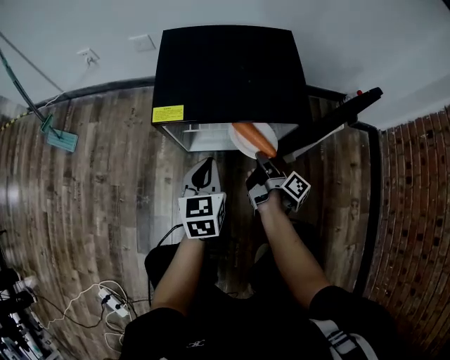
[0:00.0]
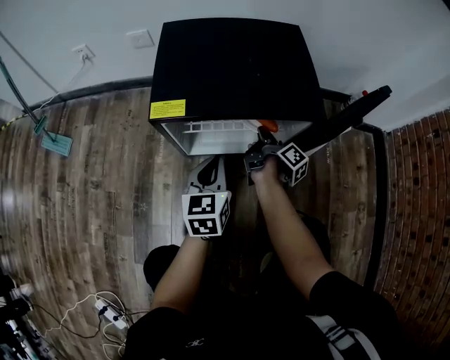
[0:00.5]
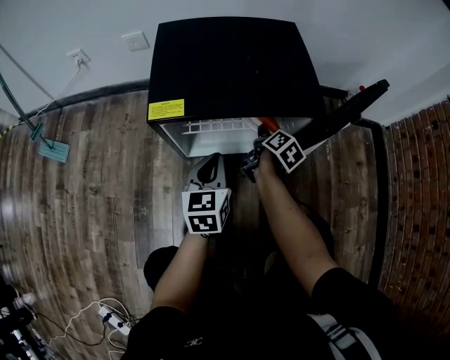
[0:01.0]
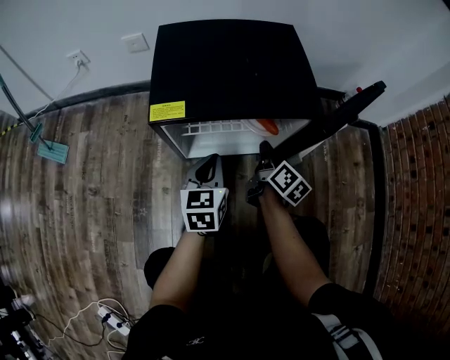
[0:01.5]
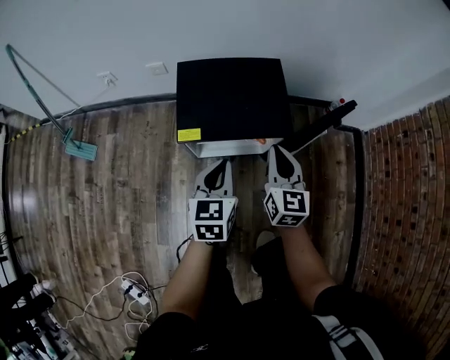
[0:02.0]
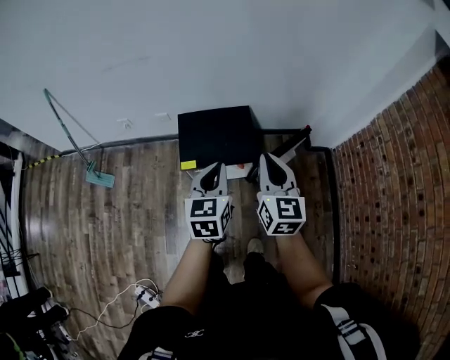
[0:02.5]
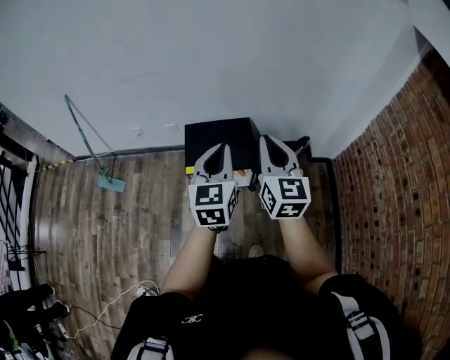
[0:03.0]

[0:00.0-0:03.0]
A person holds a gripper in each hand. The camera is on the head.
0:00.0 to 0:01.5: The left gripper heads downward, covering some 5 cm.
0:01.5 to 0:03.0: The left gripper heads upward, covering roughly 70 cm.

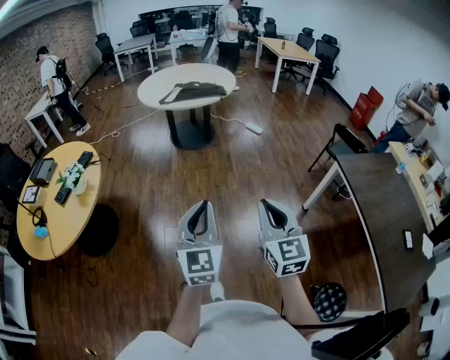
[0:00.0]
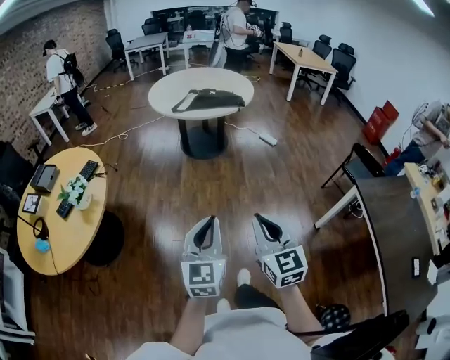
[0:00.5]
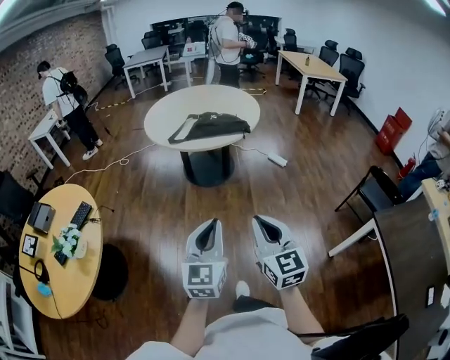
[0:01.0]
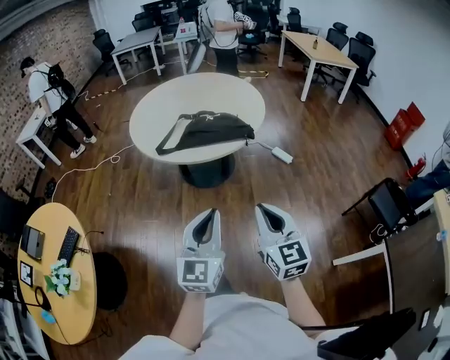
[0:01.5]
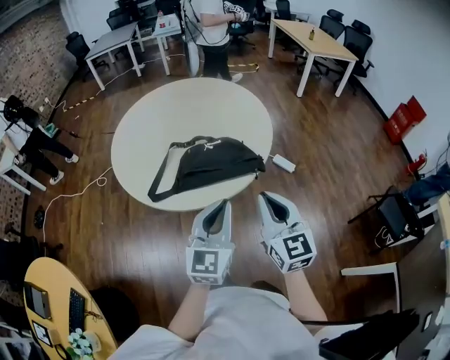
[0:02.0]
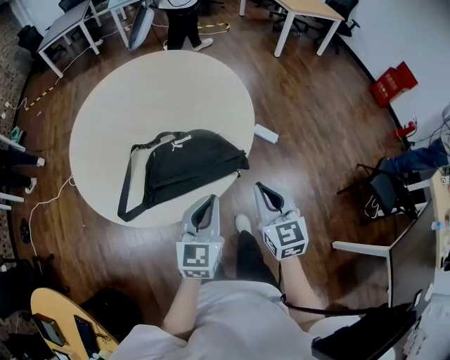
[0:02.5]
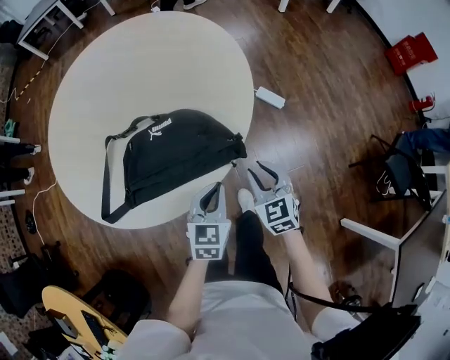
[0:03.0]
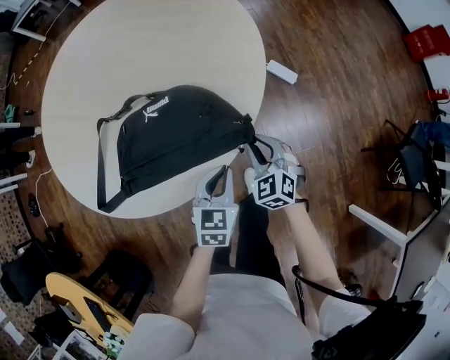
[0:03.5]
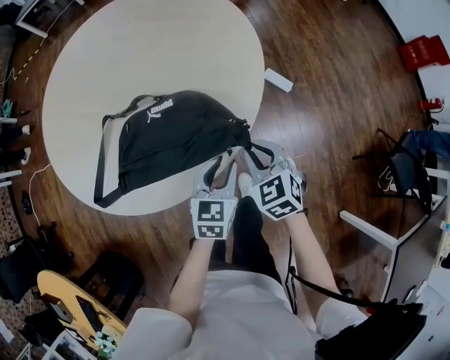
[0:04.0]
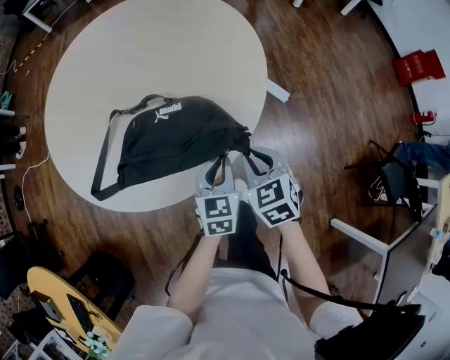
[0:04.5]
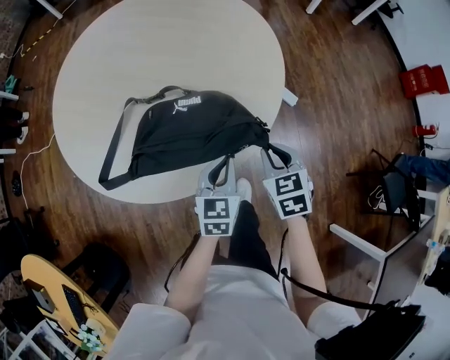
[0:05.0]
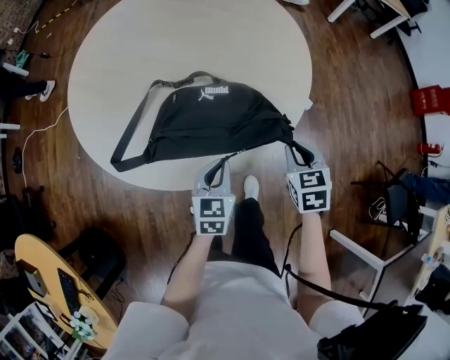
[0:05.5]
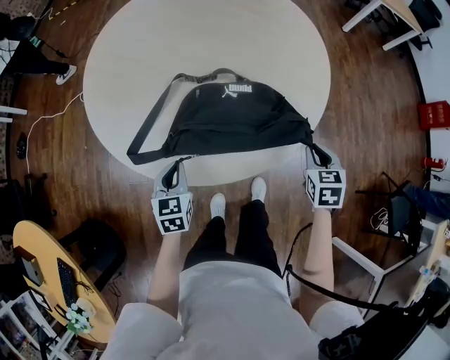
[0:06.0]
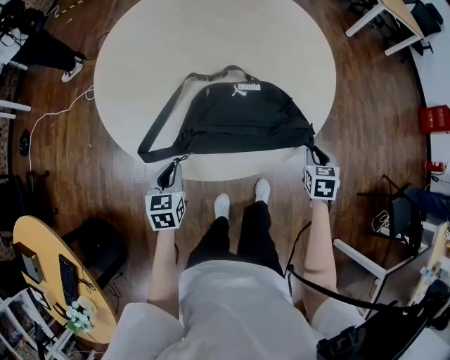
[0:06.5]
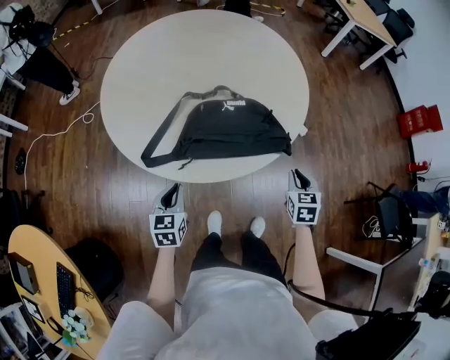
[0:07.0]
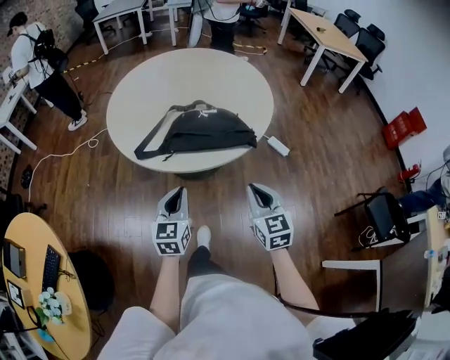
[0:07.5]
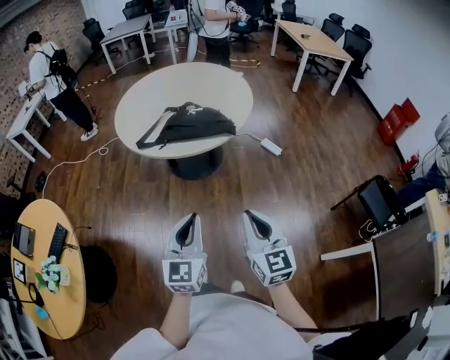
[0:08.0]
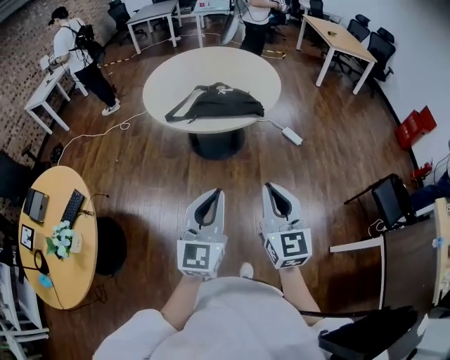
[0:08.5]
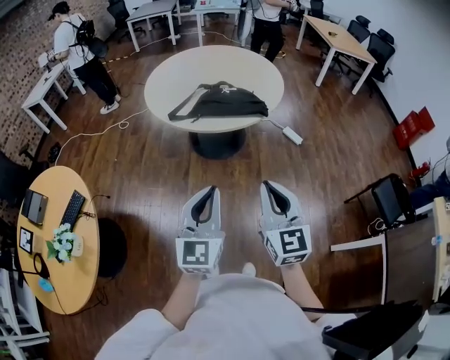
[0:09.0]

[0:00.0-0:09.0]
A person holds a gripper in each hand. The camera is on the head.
0:00.0 to 0:02.0: Both grippers are carried forward, some 90 cm.
0:02.0 to 0:04.5: The two grippers go some 35 cm downward and forward. The right gripper angles its fingers downward, by about 40 degrees; the left gripper rotates about 30 degrees, and opens, then closes again.
0:04.5 to 0:07.0: The left gripper is displaced to the left and backward by some 35 cm. The right gripper is displaced backward by about 10 cm, and swivels roughly 20 degrees.
0:07.0 to 0:09.0: The two grippers travel together, backward, approximately 50 cm. The grippers both shift upward by about 30 cm. The left gripper tilts its fingers about 30 degrees upward, while the right gripper tilts its fingers approximately 40 degrees upward.

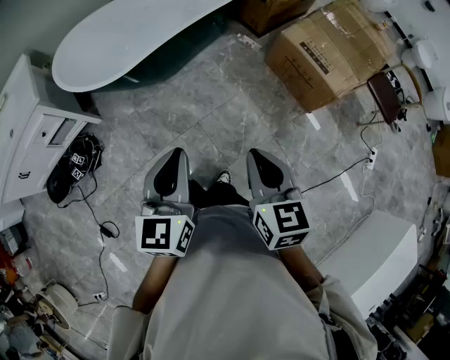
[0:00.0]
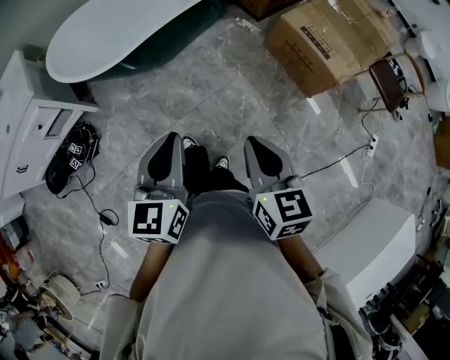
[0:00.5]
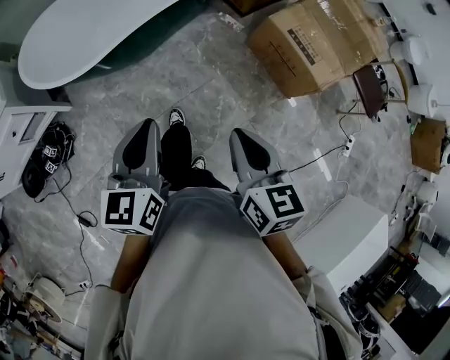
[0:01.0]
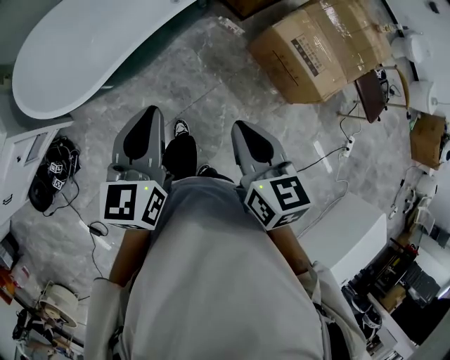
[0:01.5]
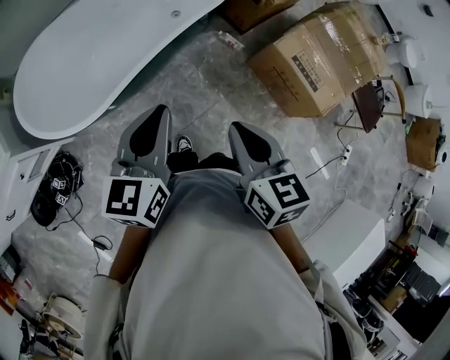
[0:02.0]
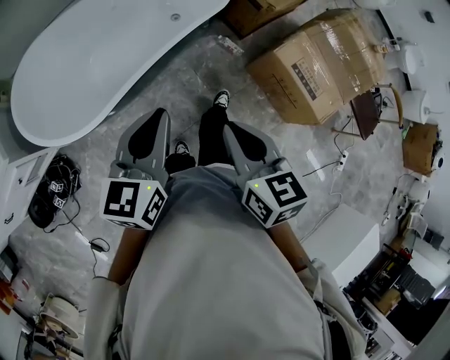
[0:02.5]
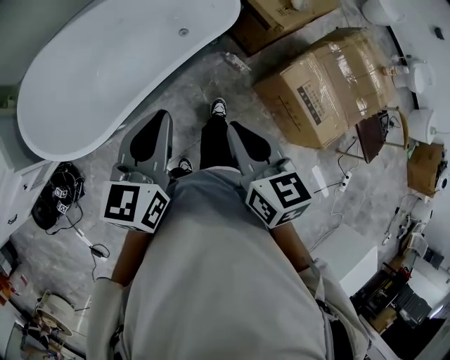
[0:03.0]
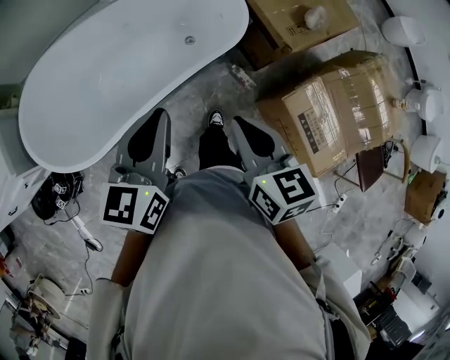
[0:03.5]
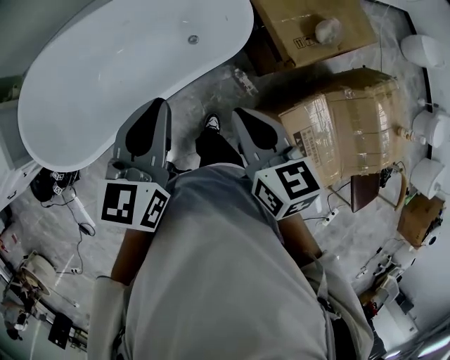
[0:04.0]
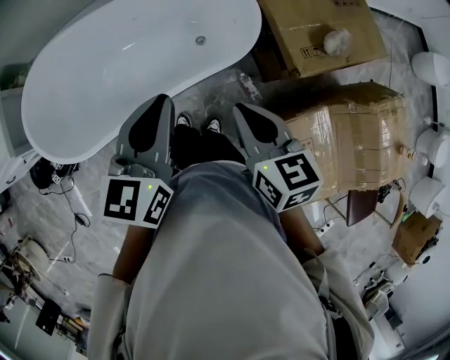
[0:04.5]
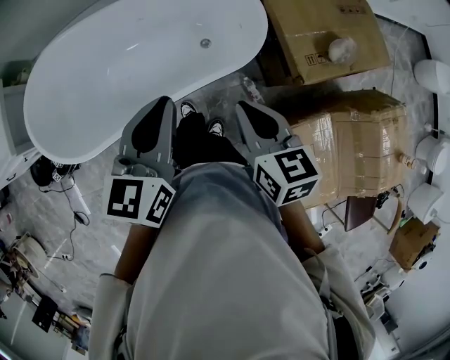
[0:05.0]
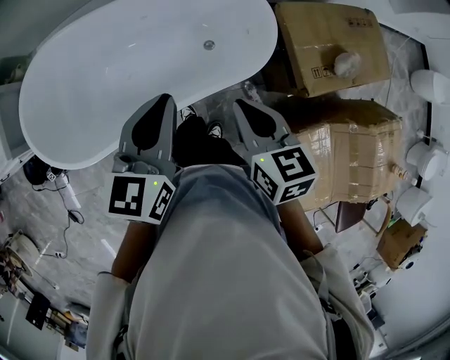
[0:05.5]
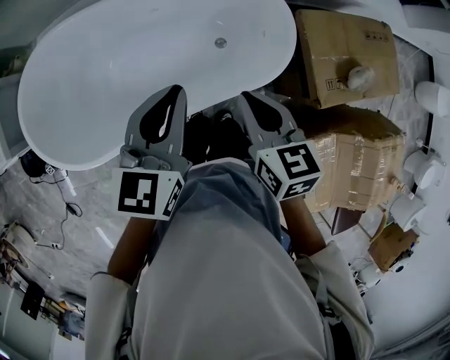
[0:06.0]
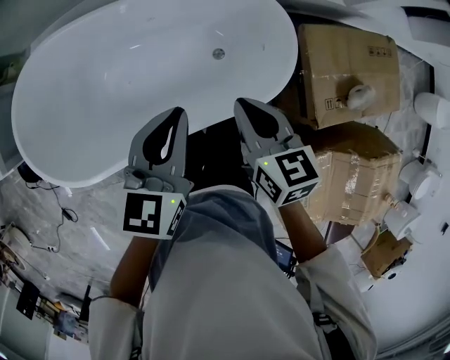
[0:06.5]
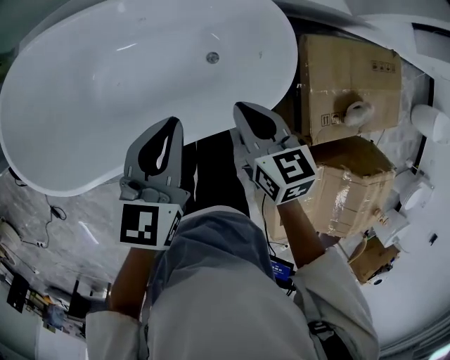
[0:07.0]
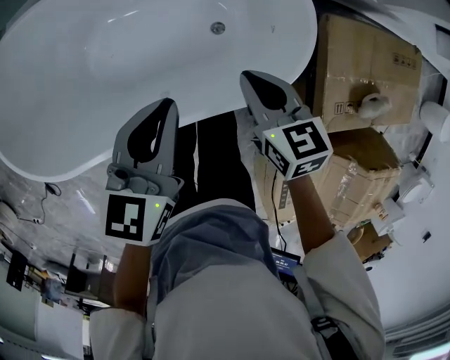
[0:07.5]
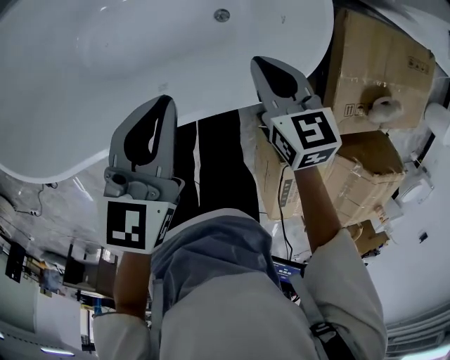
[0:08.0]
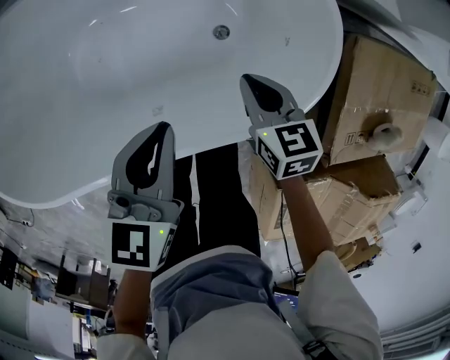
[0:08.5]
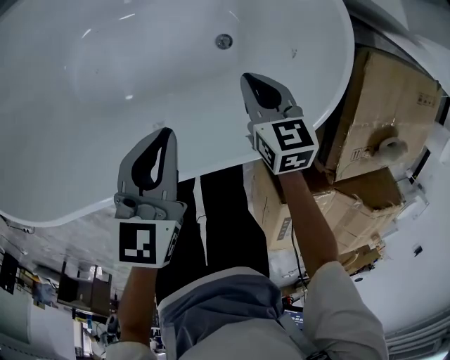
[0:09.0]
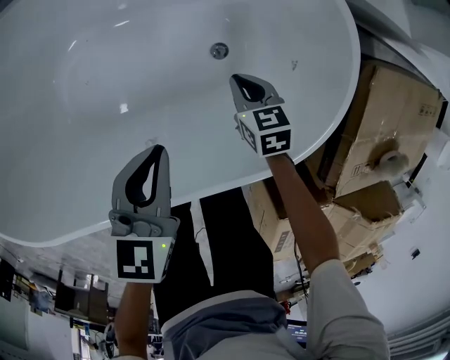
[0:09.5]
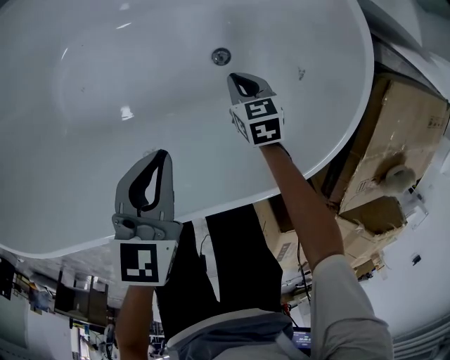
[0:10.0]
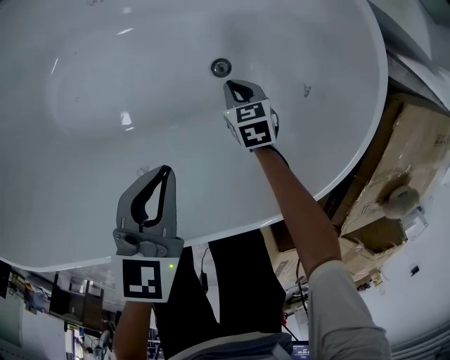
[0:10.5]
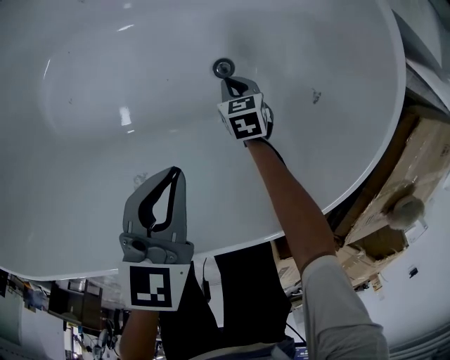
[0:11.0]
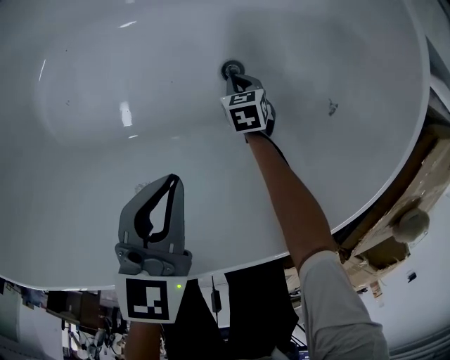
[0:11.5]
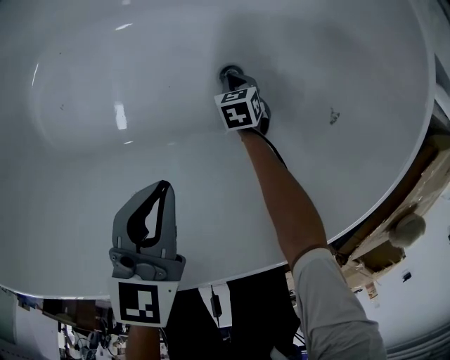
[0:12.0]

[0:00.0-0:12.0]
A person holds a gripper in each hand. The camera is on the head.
0:00.0 to 0:02.0: The grippers both shift forward by about 40 cm.
0:02.0 to 0:04.0: Both grippers are carried forward and to the right, some 50 cm.
0:04.0 to 0:06.0: The two grippers go approximately 20 cm forward and to the left.
0:06.0 to 0:08.0: Both grippers travel together downward and forward, some 30 cm.
0:08.0 to 0:10.0: Both grippers travel together downward, roughly 30 cm.
0:10.0 to 0:12.0: The right gripper shifts some 25 cm downward; the left gripper goes roughly 15 cm downward.

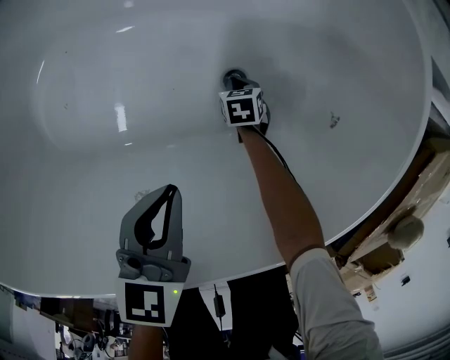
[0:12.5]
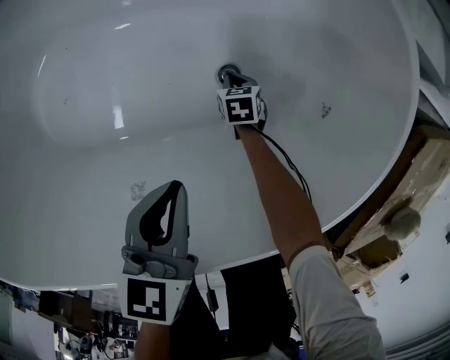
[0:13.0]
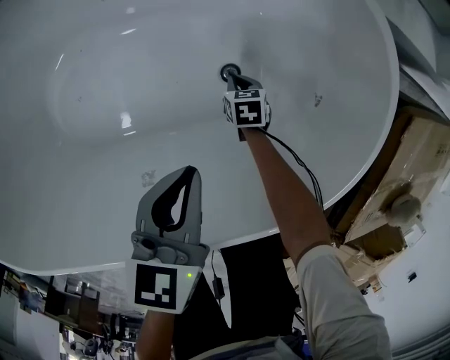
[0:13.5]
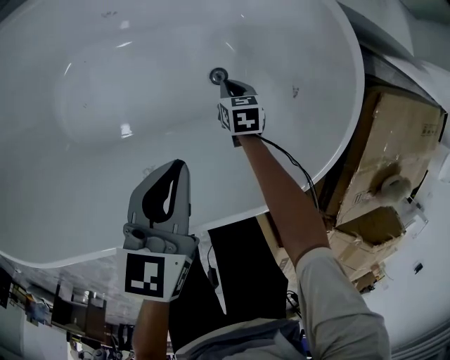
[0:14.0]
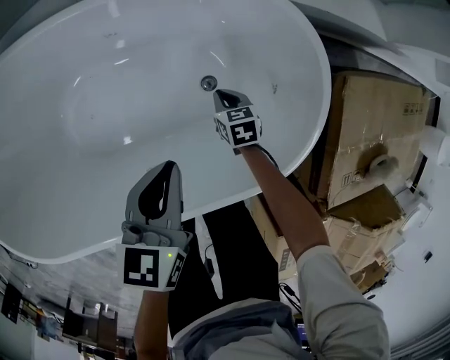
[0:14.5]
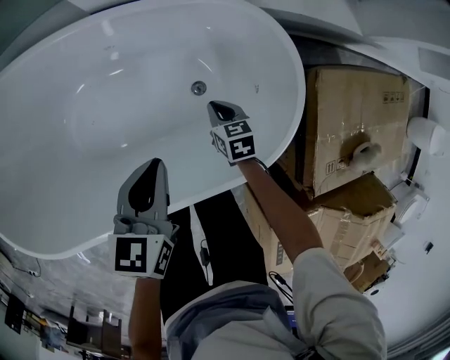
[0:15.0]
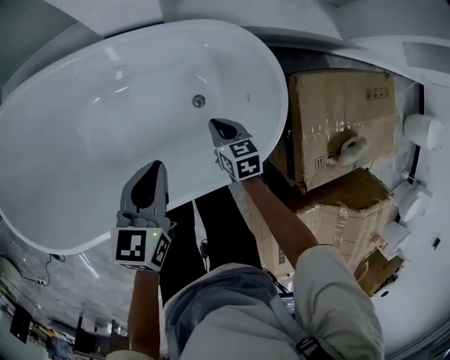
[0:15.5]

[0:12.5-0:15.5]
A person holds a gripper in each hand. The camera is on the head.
0:12.5 to 0:14.0: The grippers both shift upward by approximately 15 cm.
0:14.0 to 0:15.5: The right gripper shifts roughly 30 cm upward. The left gripper is displaced upward by approximately 20 cm.
